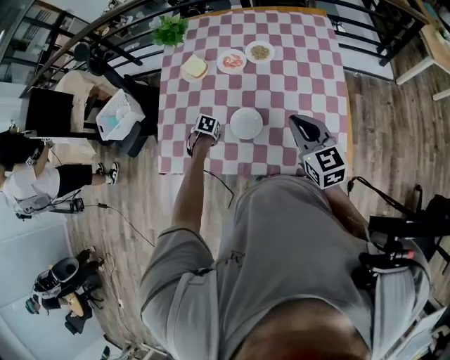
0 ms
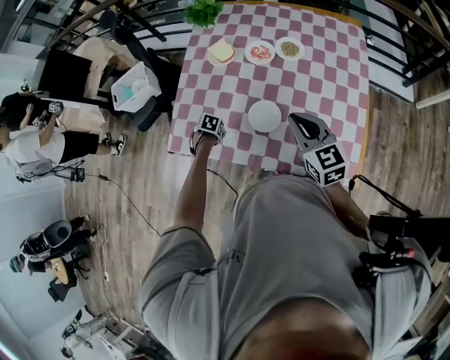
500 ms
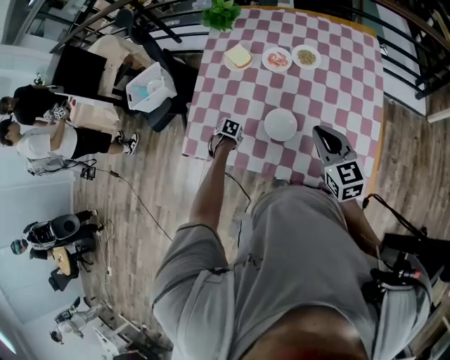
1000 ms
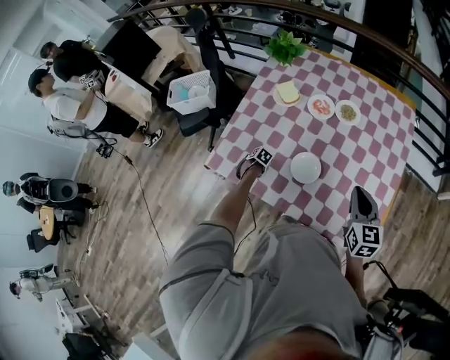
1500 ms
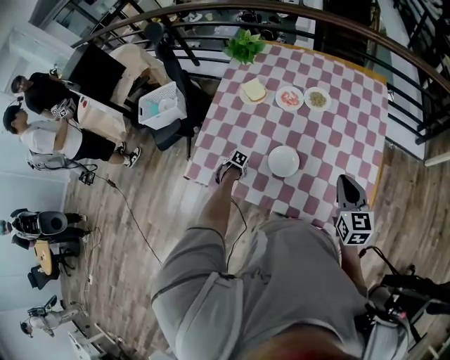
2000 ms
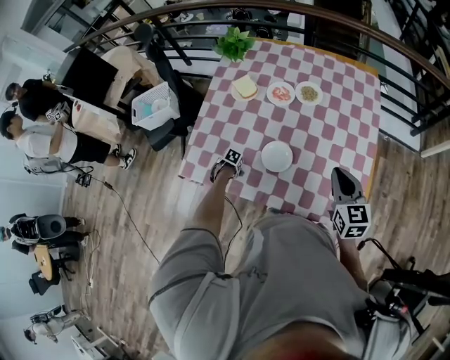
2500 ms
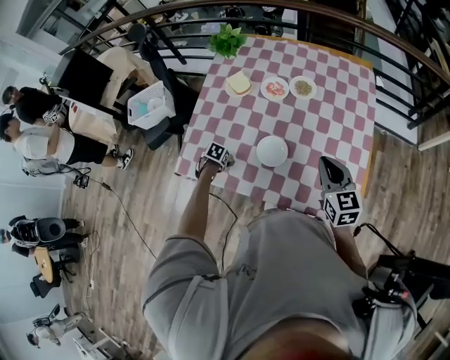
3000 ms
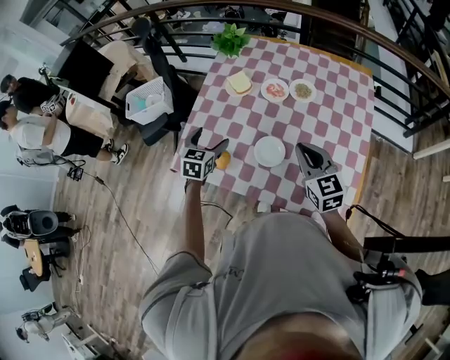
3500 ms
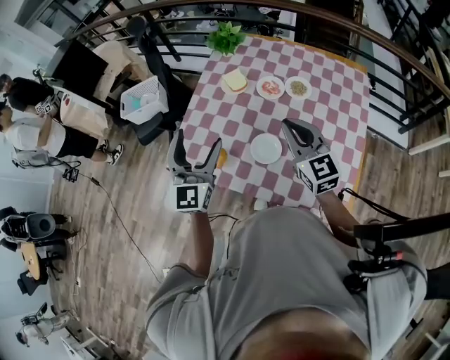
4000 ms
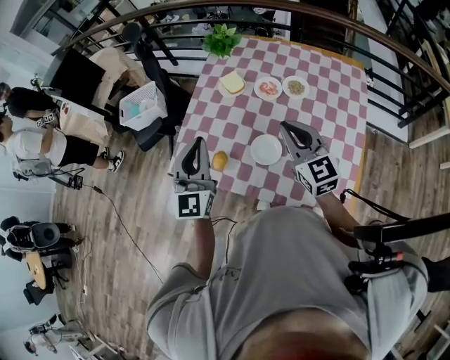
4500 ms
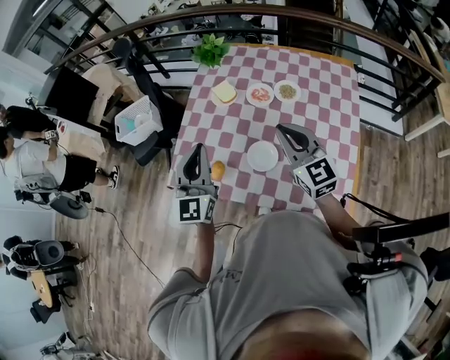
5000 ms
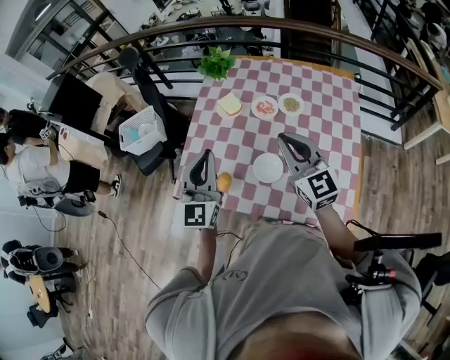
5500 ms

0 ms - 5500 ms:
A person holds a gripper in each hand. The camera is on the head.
0 ms - 2000 ms: The left gripper heads downward, covering some 10 cm.
2000 ms - 3500 ms: The left gripper goes about 35 cm upward, and points its fingers roughly 50 degrees further upward. The right gripper shifts by some 10 cm.
3500 ms - 5500 ms: The left gripper travels upward by some 20 cm, tilts its fingers approximately 40 degrees upward, and closes. Meanwhile the right gripper shifts some 15 cm upward and to the left.

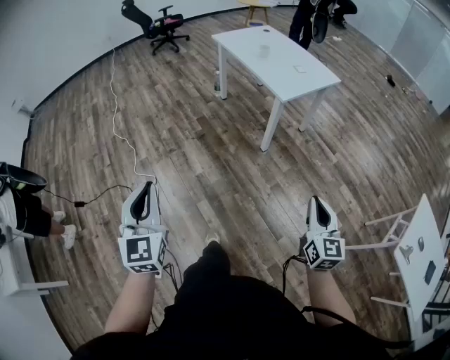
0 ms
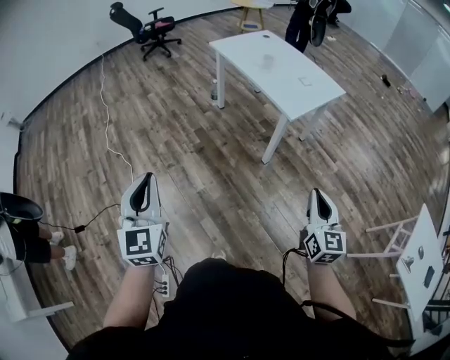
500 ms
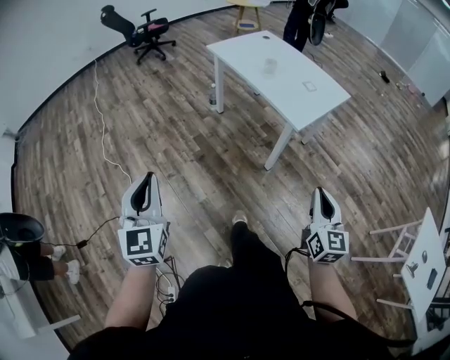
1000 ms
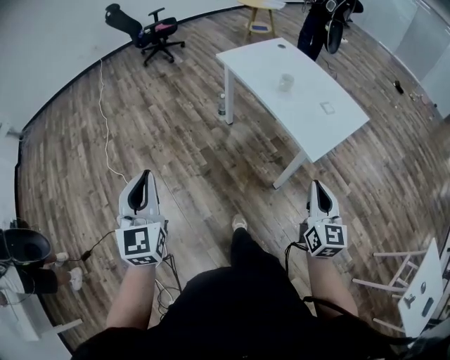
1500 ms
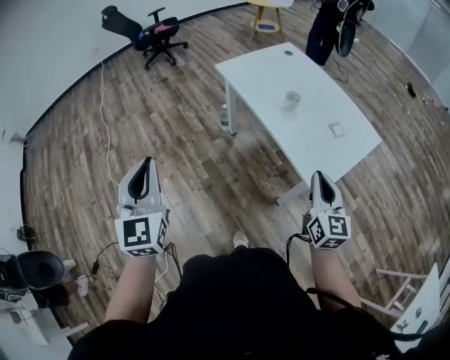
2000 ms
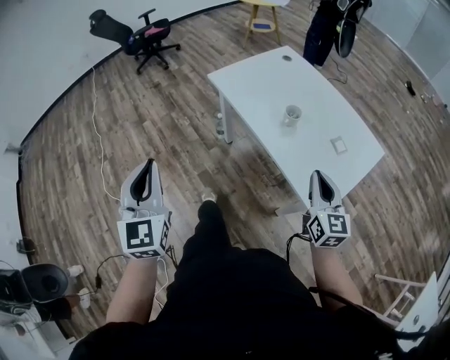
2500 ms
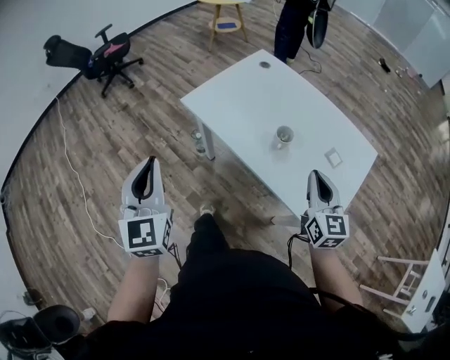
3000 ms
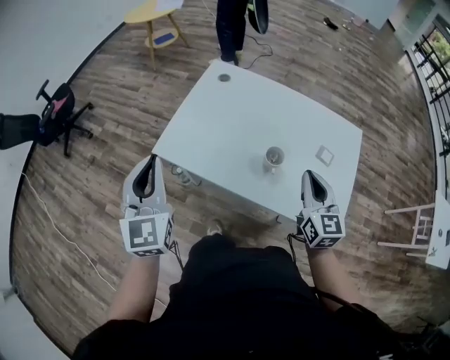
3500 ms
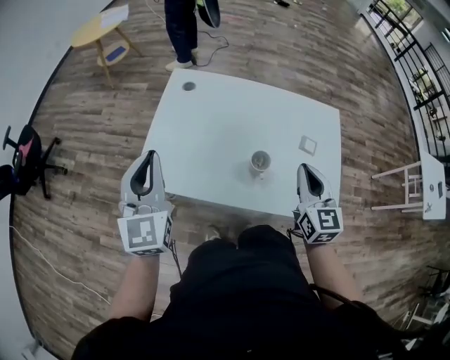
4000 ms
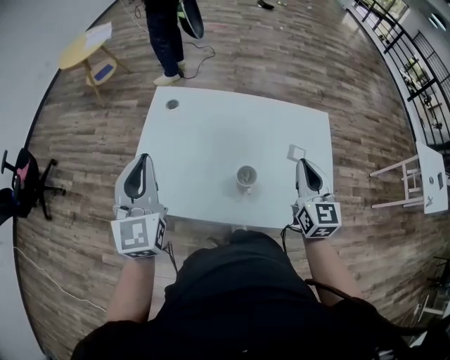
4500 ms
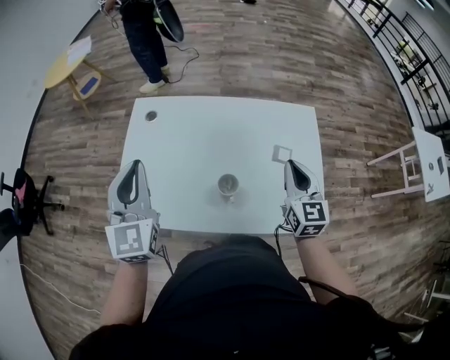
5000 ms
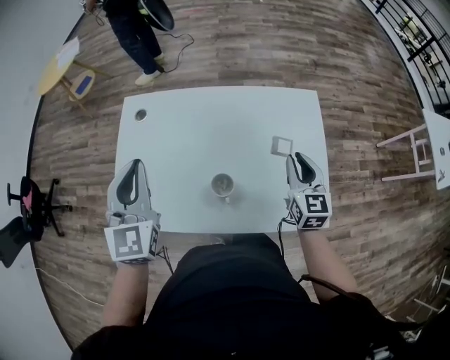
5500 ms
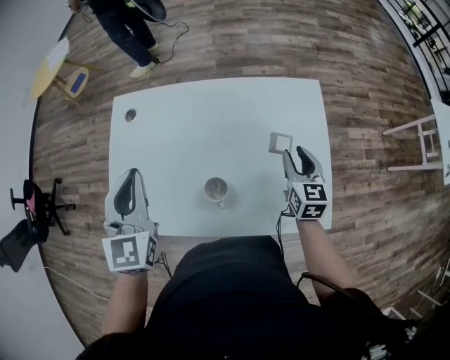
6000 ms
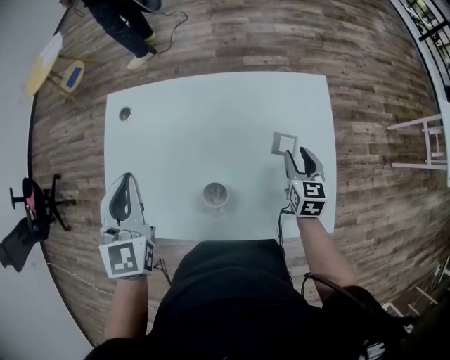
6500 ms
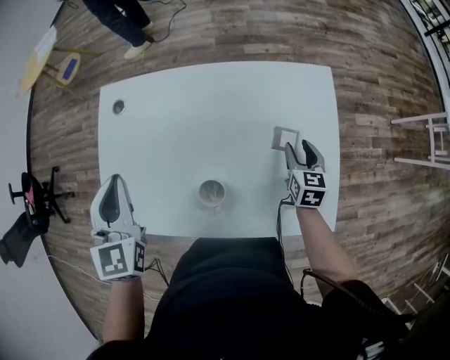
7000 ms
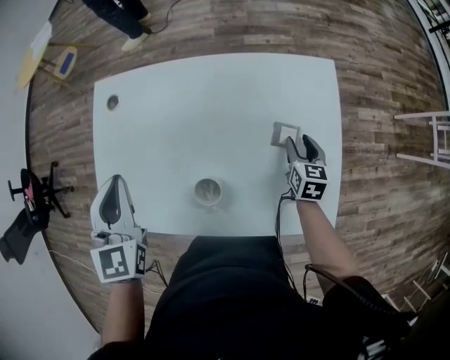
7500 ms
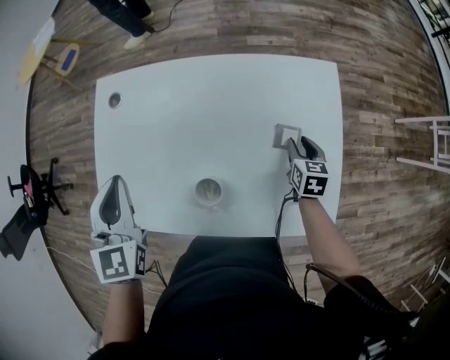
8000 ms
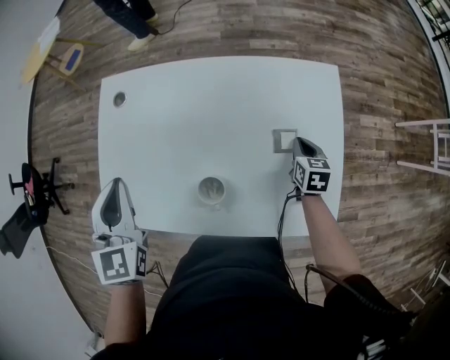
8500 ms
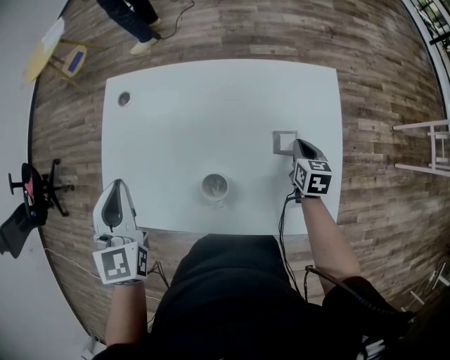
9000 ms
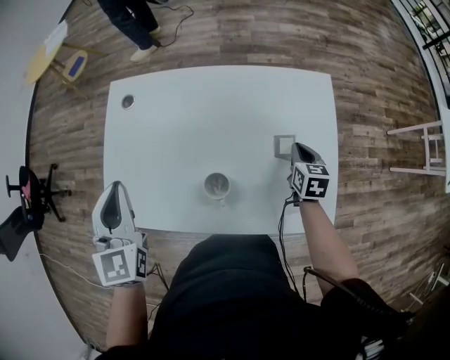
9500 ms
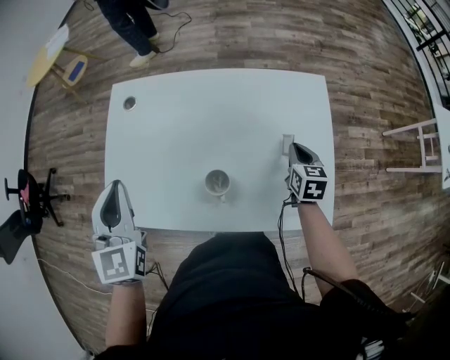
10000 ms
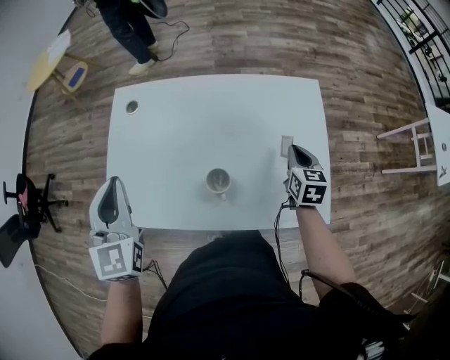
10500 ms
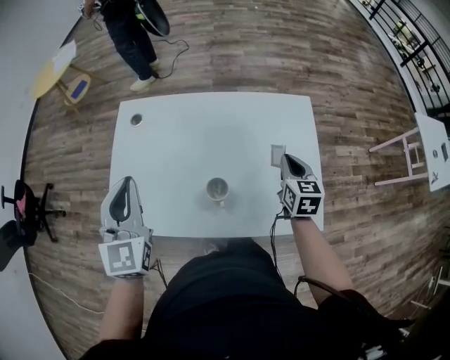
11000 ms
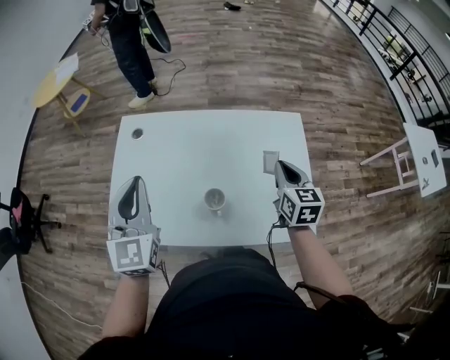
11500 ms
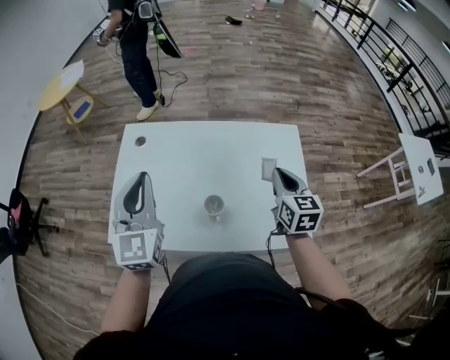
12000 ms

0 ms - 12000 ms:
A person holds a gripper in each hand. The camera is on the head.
0 ms - 2000 ms: The two grippers travel together, forward, some 50 cm.
2000 ms - 4000 ms: The right gripper ends up about 25 cm from where it was, and swivels about 40 degrees, while the left gripper changes place by approximately 50 cm, and rotates roughly 50 degrees.
4000 ms - 6000 ms: The left gripper travels to the right and forward by some 15 cm; the right gripper goes about 20 cm downward, to the right and forward, rotates approximately 20 degrees, and opens up.
6000 ms - 8000 ms: The right gripper heads downward, covering roughly 10 cm, and rotates about 20 degrees.
8000 ms - 10000 ms: The right gripper shifts some 5 cm upward, and closes; the left gripper shifts by some 5 cm.
10000 ms - 12000 ms: The left gripper travels upward and to the right by about 5 cm. Meanwhile the right gripper is displaced upward by about 15 cm.

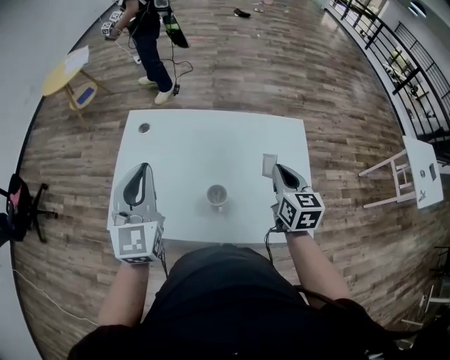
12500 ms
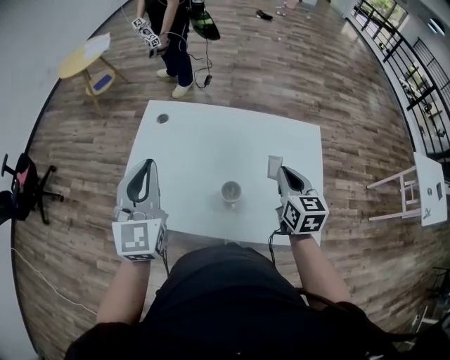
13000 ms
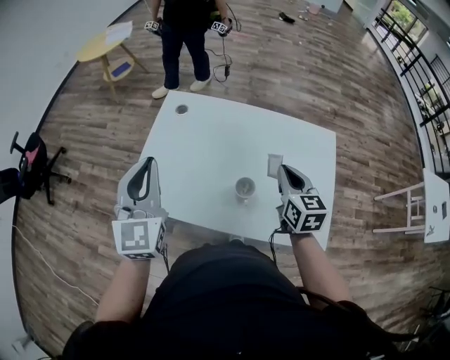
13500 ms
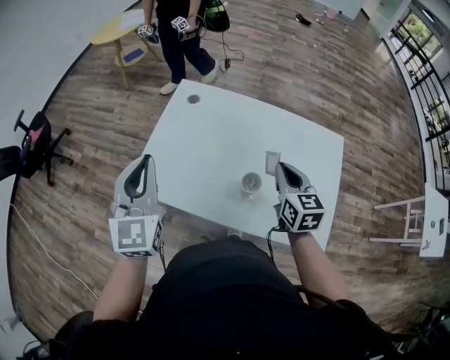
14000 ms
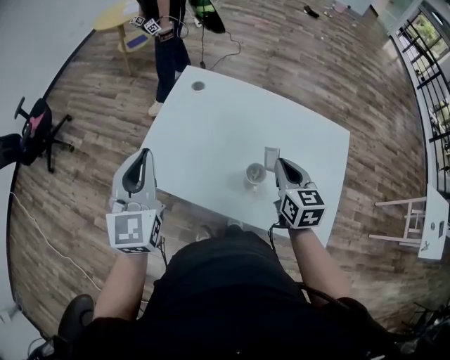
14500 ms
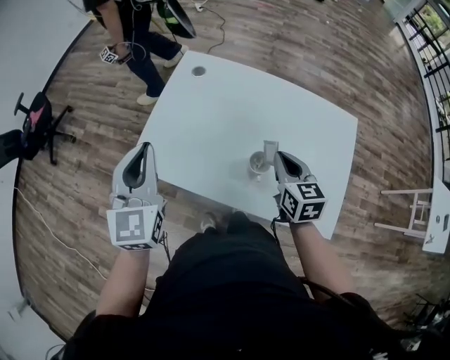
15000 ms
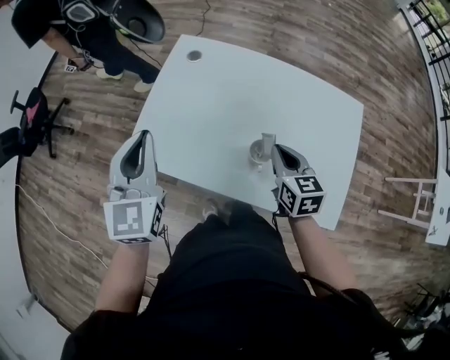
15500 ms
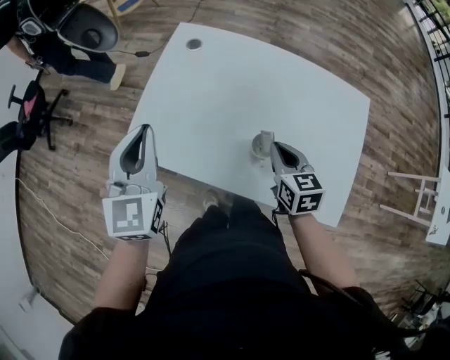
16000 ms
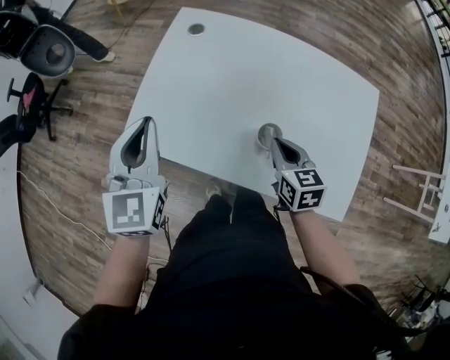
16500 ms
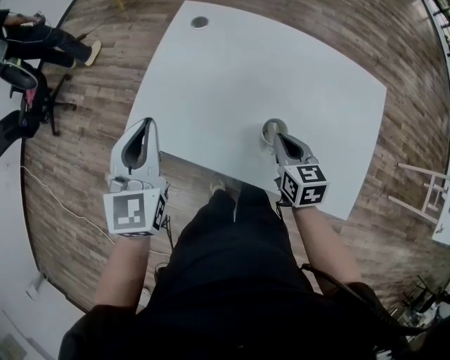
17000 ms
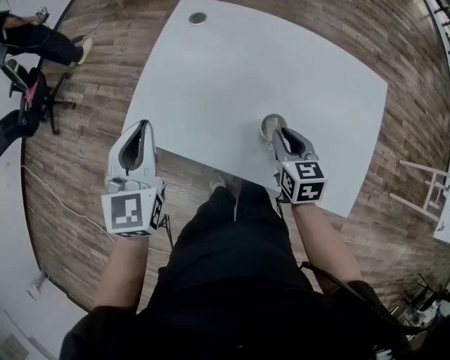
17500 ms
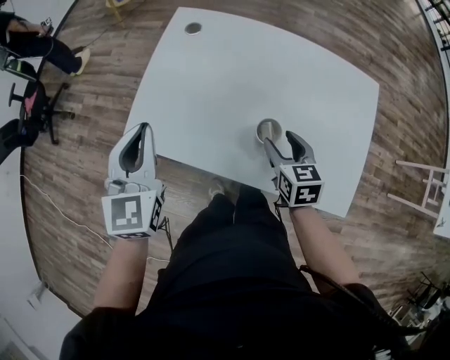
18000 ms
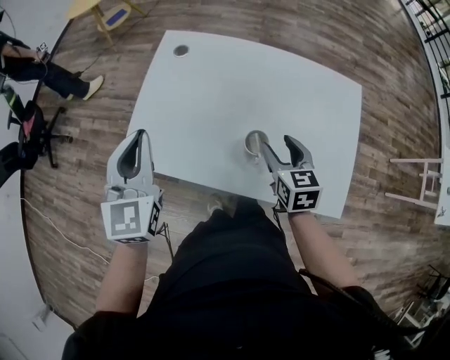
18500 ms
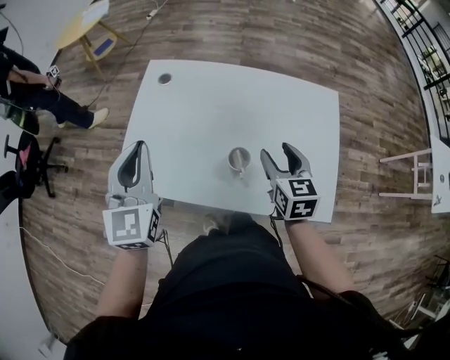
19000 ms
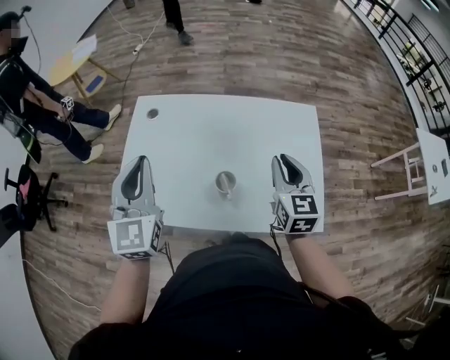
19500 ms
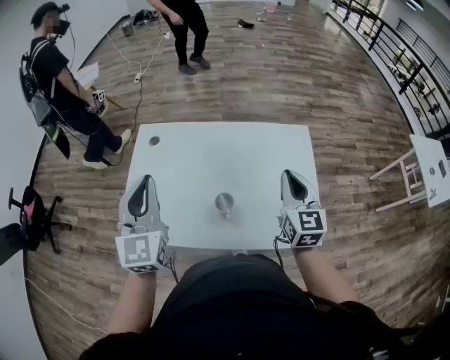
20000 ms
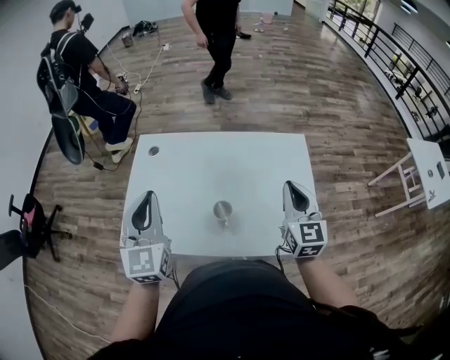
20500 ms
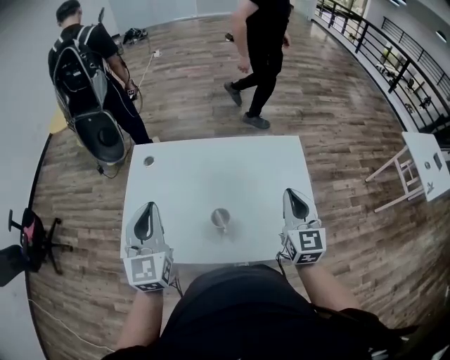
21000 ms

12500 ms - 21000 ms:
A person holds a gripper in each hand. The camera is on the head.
12500 ms - 14500 ms: The right gripper heads to the left, covering about 10 cm, and changes its angle by some 20 degrees. The left gripper moves to the left and backward, some 15 cm.
14500 ms - 16500 ms: The right gripper travels downward by roughly 10 cm.
16500 ms - 19000 ms: The right gripper goes about 10 cm to the right and upward, and opens its fingers. Meanwhile the left gripper moves some 5 cm.
19000 ms - 21000 ms: The left gripper moves approximately 5 cm. Meanwhile the right gripper shifts roughly 15 cm to the right and upward, changes its angle by some 30 degrees, and closes up.

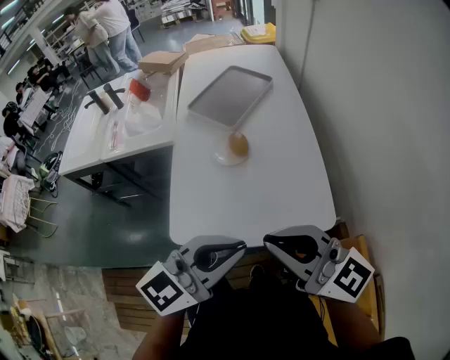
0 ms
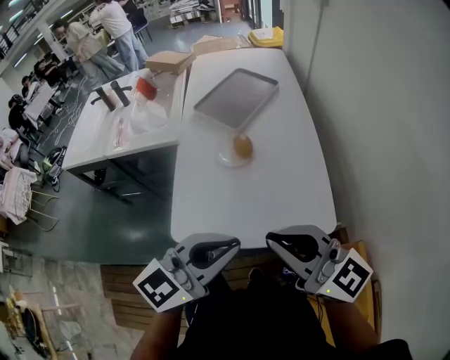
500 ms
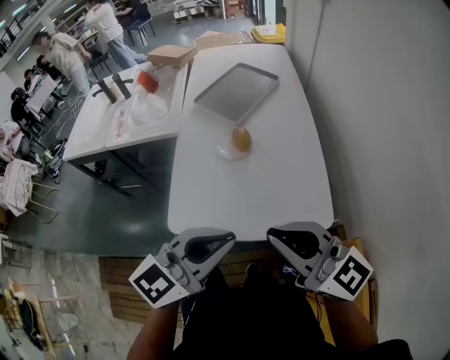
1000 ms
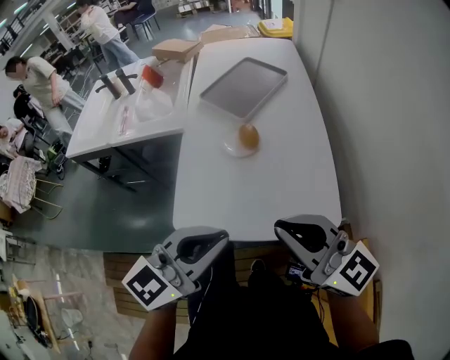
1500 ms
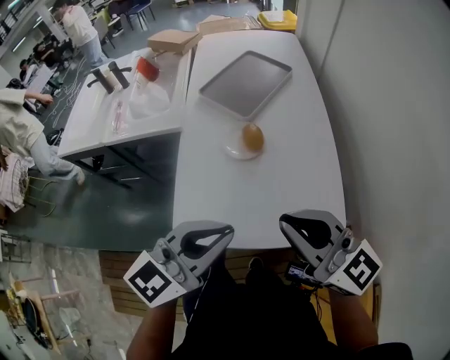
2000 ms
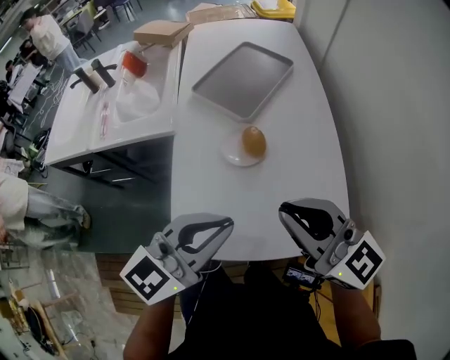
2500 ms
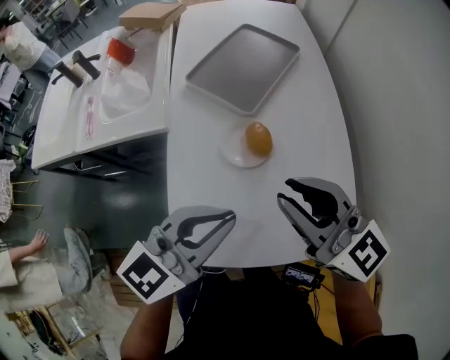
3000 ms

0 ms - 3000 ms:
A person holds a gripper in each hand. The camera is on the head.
0 ms - 1500 ms: There are only small adjustments of the grippers.
1500 ms - 3000 ms: The two grippers go approximately 20 cm forward.
